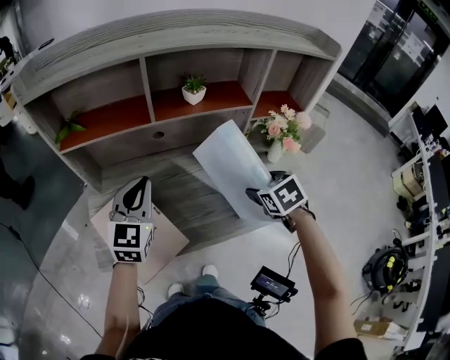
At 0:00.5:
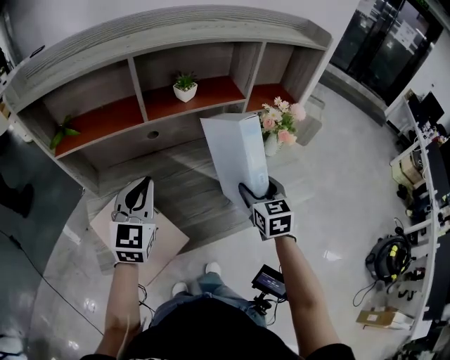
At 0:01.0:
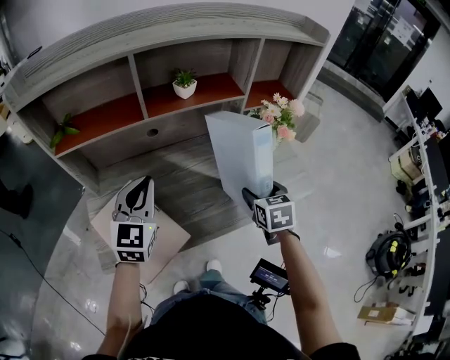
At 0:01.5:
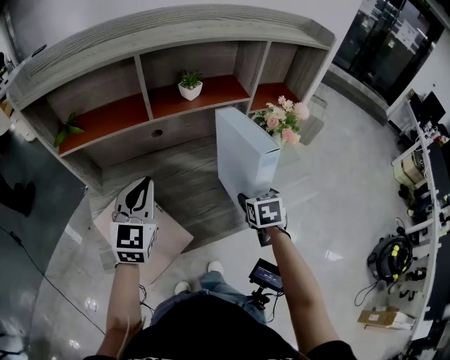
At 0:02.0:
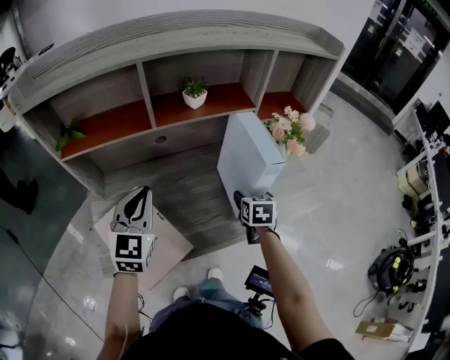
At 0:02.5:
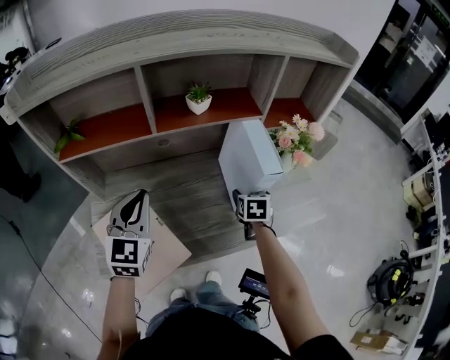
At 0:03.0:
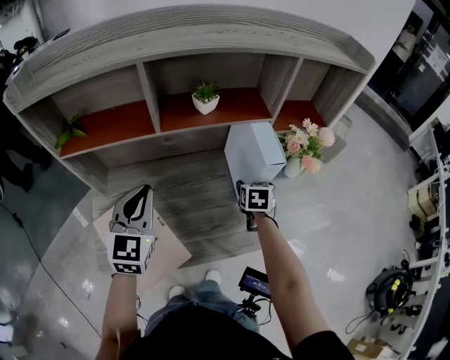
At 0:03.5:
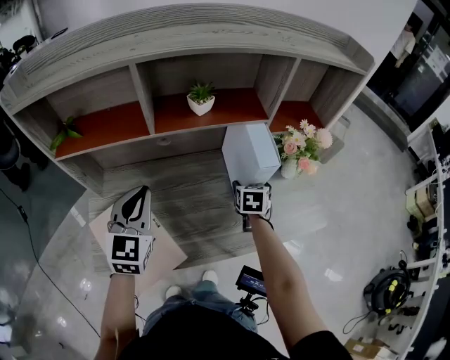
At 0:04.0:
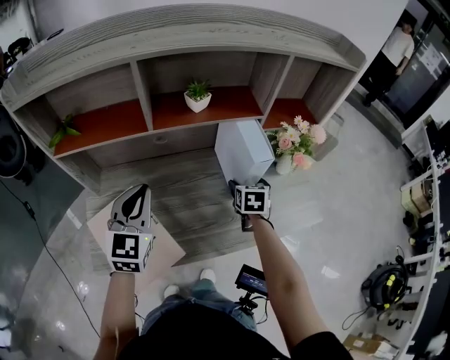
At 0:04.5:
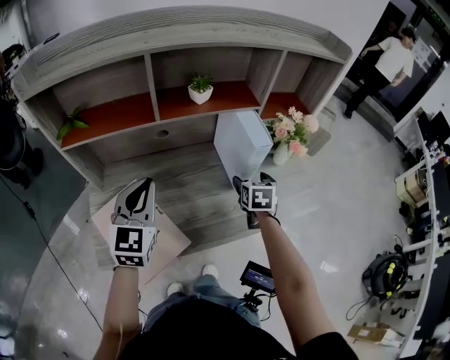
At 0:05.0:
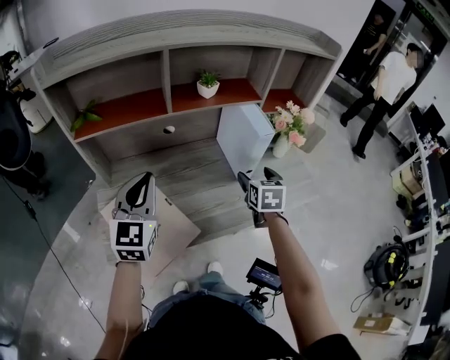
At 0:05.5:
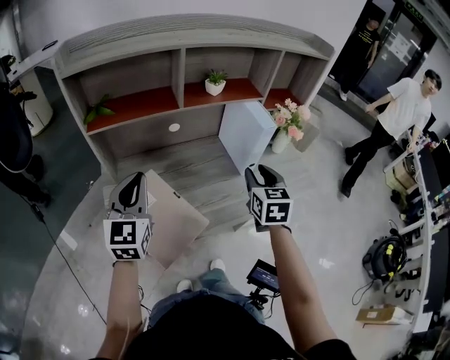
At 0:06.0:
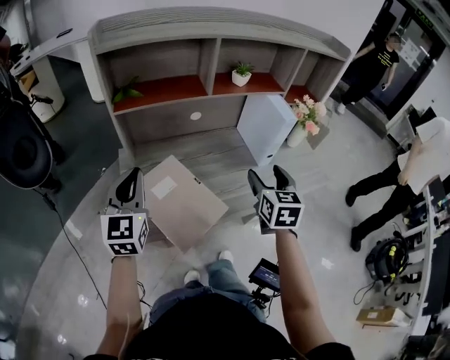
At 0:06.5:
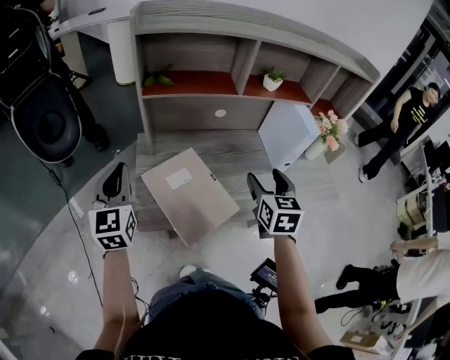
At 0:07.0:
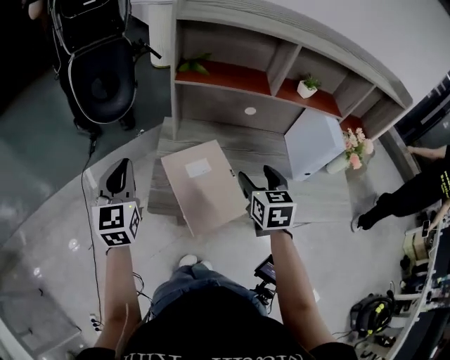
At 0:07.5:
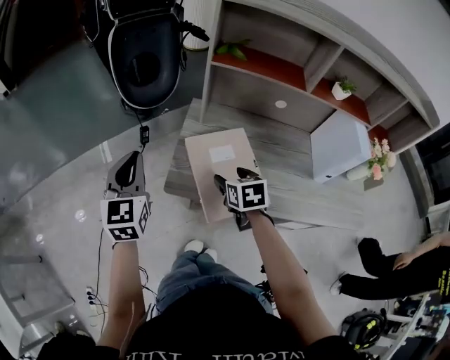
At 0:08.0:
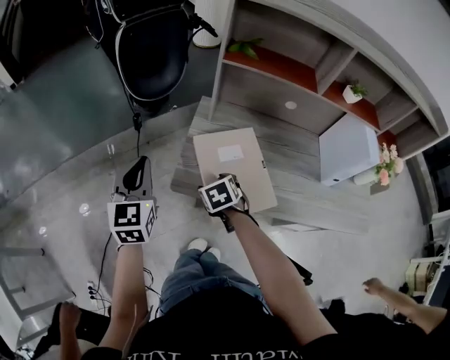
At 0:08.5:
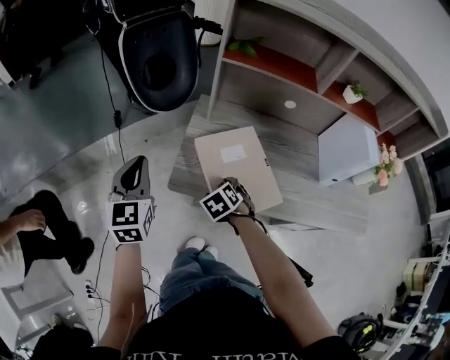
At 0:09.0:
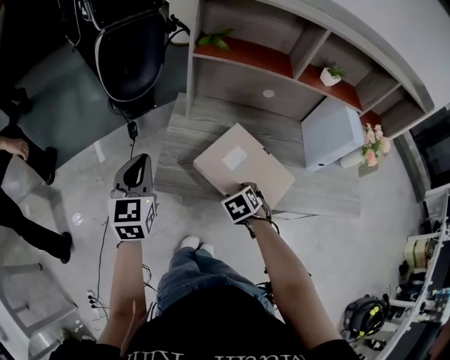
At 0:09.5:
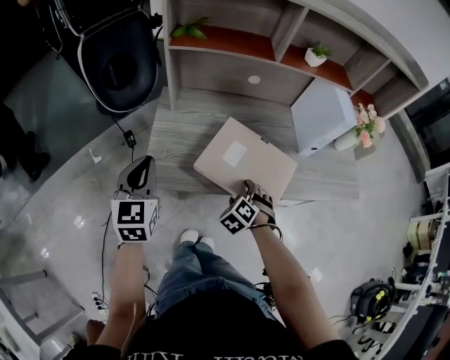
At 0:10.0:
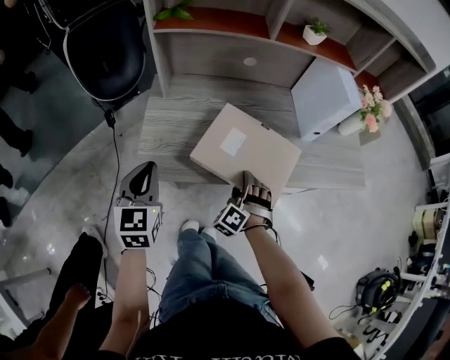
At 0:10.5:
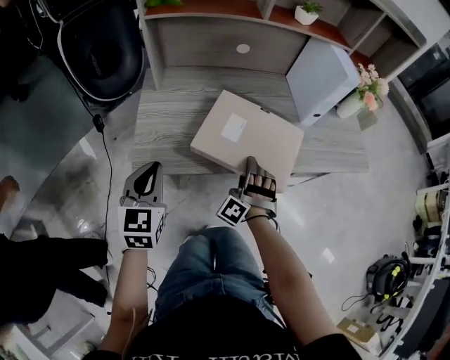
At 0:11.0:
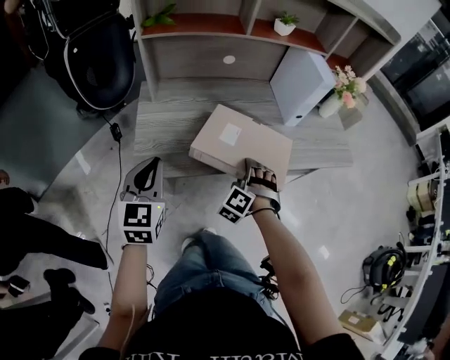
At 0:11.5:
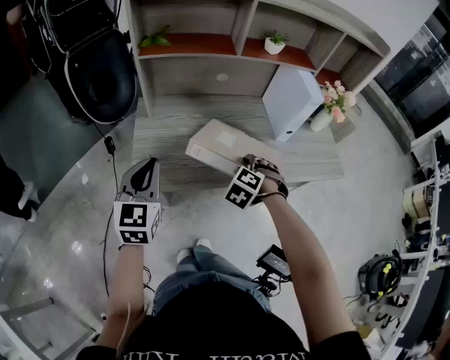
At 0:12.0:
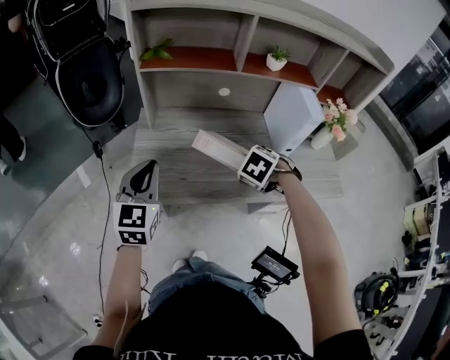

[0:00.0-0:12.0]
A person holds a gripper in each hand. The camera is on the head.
0:00.0 to 0:02.0: The right gripper goes approximately 10 cm downward, and swivels approximately 30 degrees.
0:02.0 to 0:04.0: The right gripper is displaced forward by roughly 10 cm.
0:04.0 to 0:06.0: The left gripper moves to the left and backward, roughly 25 cm. The right gripper moves backward, upward and to the left, some 30 cm, rotates approximately 20 degrees, and closes, then opens again.
0:06.0 to 0:08.0: The left gripper shifts by some 20 cm, and turns by some 30 degrees. Meanwhile the right gripper shifts by some 40 cm, and tips its fingers downward by approximately 40 degrees.
0:08.0 to 0:10.0: The left gripper shifts by roughly 15 cm. The right gripper moves about 25 cm, and changes its angle by roughly 60 degrees.
0:10.0 to 0:12.0: The left gripper heads upward, covering some 10 cm. The right gripper heads upward, covering approximately 15 cm, and tips its fingers downward by some 40 degrees.

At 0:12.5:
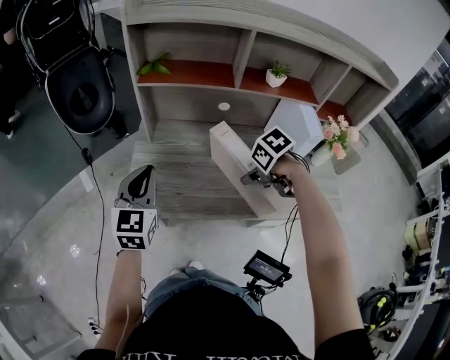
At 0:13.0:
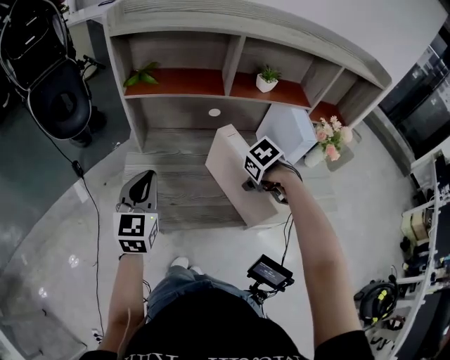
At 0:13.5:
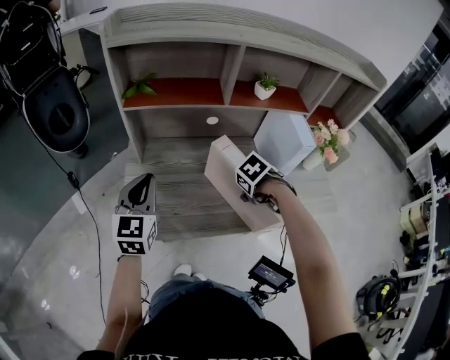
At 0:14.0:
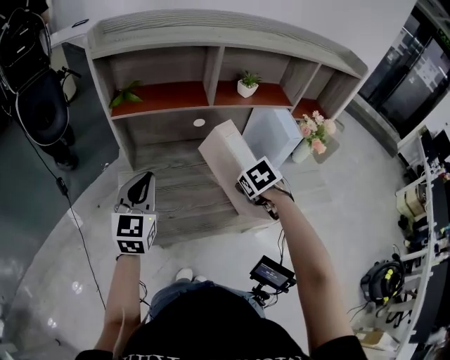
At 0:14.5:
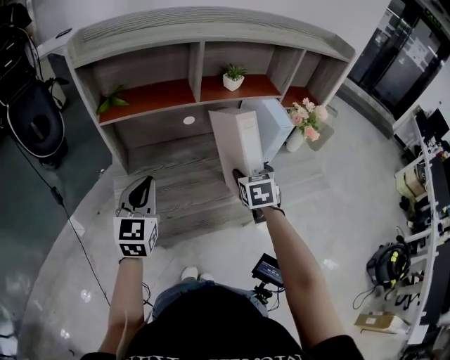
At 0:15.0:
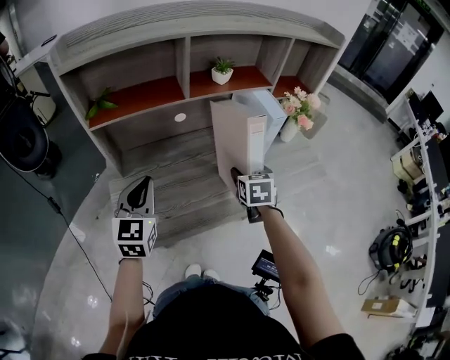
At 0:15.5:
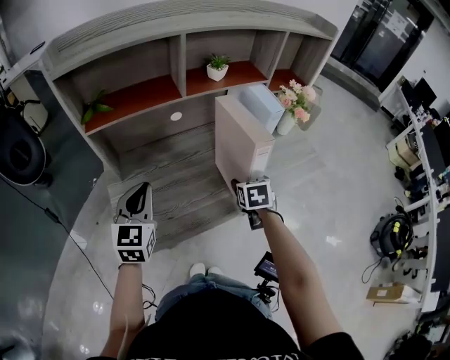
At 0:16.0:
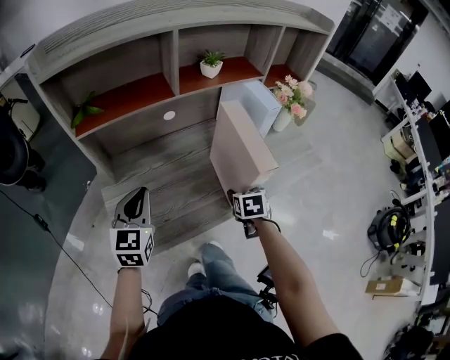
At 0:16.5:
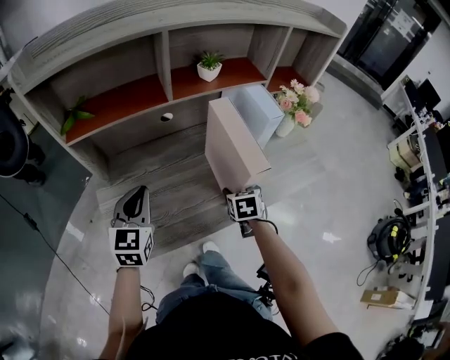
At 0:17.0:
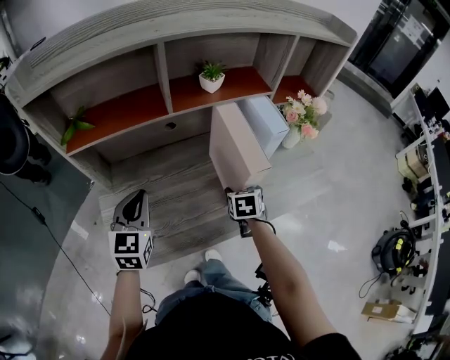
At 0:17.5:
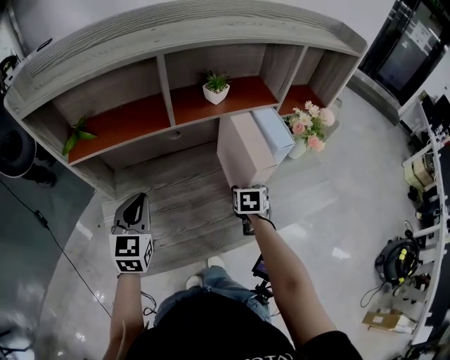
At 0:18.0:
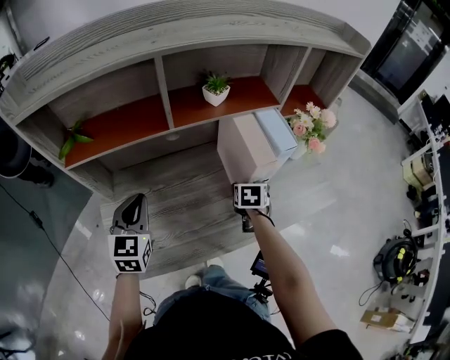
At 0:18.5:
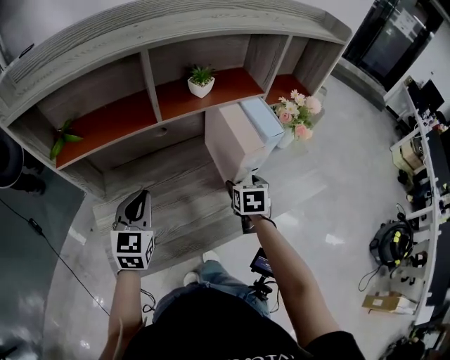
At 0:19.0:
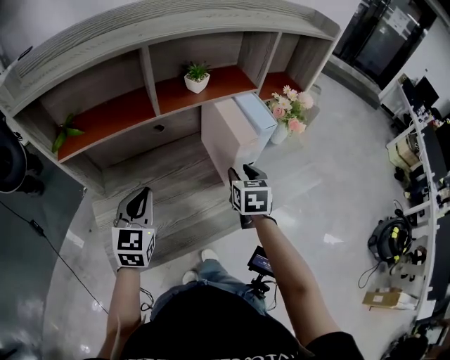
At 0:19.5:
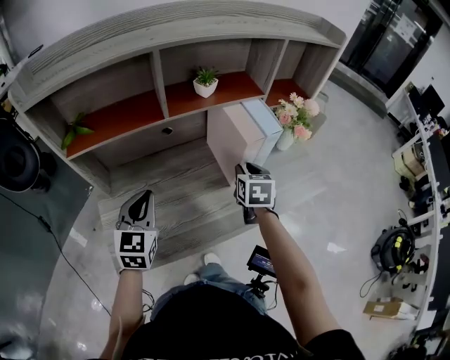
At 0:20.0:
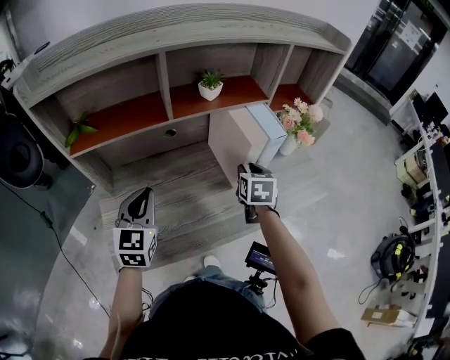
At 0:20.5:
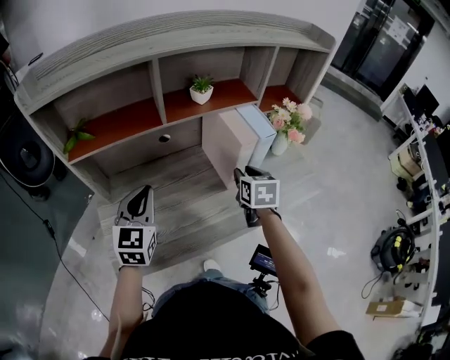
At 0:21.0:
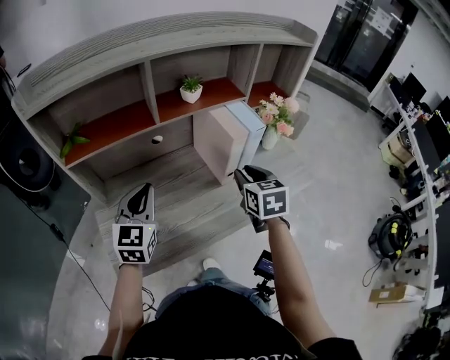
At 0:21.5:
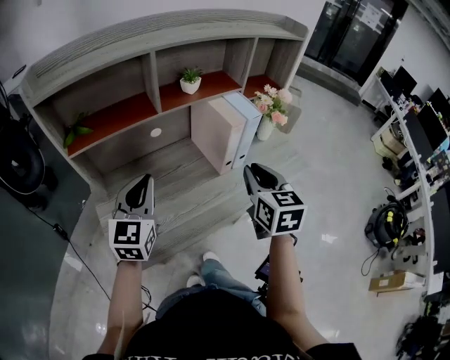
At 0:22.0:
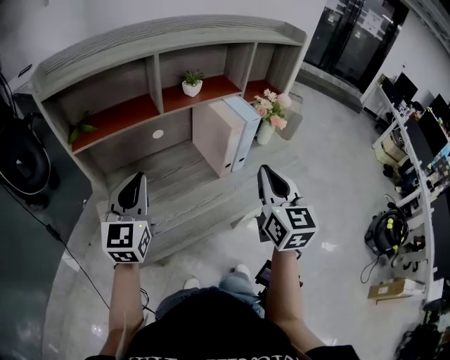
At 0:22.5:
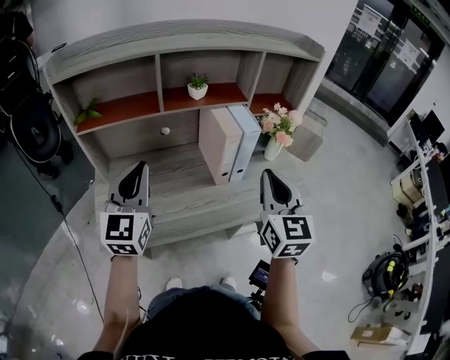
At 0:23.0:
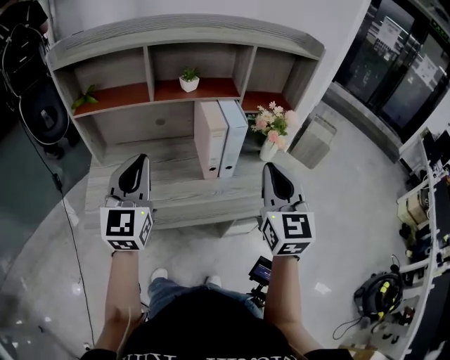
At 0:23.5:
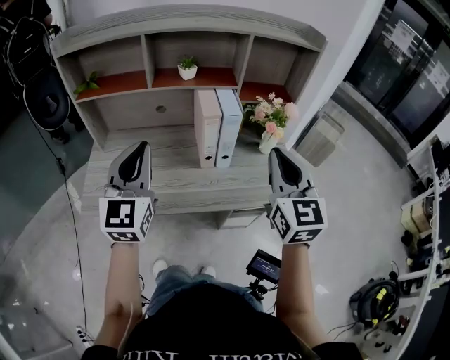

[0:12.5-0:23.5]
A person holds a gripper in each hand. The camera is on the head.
0:12.5 to 0:14.5: The right gripper moves about 5 cm, and angles its fingers upward, by approximately 40 degrees. The left gripper ends up about 10 cm from where it was.
0:14.5 to 0:16.0: The left gripper changes place by about 5 cm. Meanwhile the right gripper is displaced downward and backward by approximately 15 cm, and turns by approximately 20 degrees.
0:16.0 to 0:18.0: The right gripper moves forward, approximately 15 cm. The left gripper travels forward by some 10 cm.
0:18.0 to 0:20.0: The right gripper travels upward by about 10 cm, and closes up.
0:20.0 to 0:21.5: The right gripper shifts roughly 20 cm backward and upward. Meanwhile the left gripper travels upward by some 5 cm.
0:21.5 to 0:23.5: The right gripper moves to the right and upward, about 20 cm, and swivels about 30 degrees. The left gripper heads to the right, upward and backward, covering approximately 20 cm, and changes its angle by some 30 degrees.

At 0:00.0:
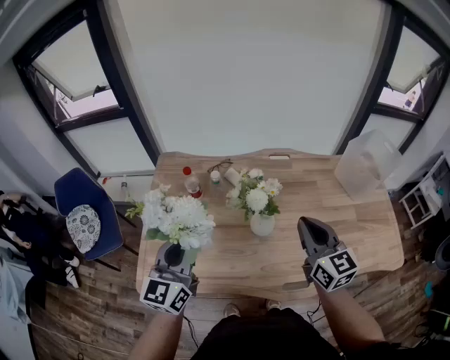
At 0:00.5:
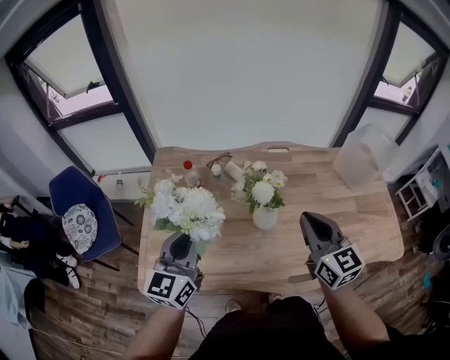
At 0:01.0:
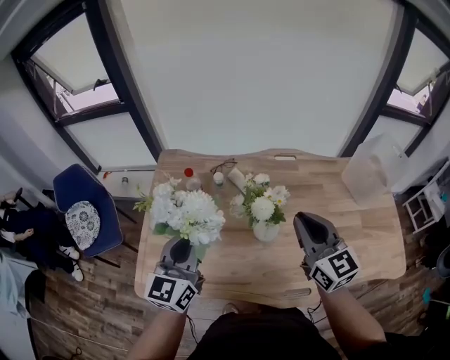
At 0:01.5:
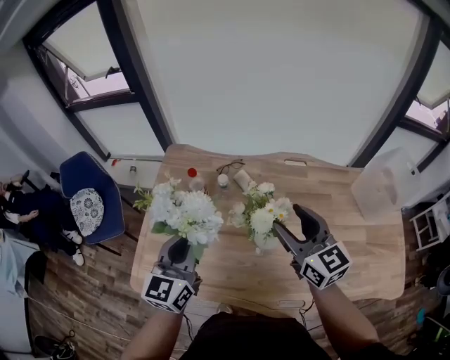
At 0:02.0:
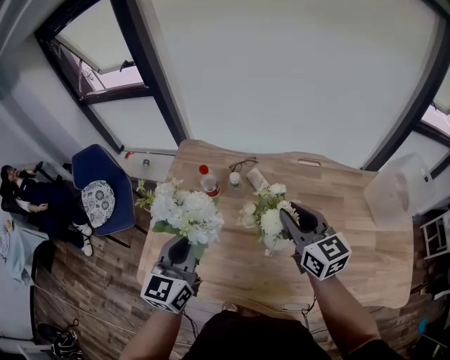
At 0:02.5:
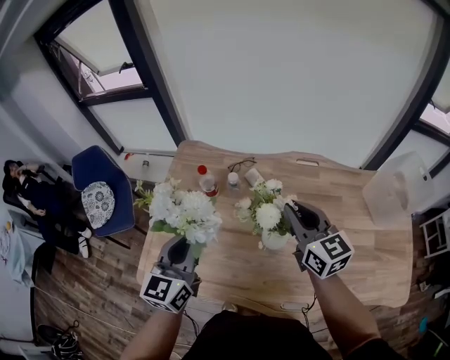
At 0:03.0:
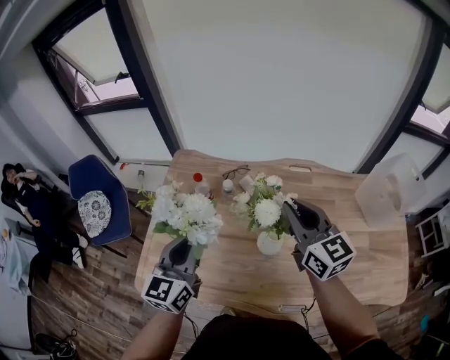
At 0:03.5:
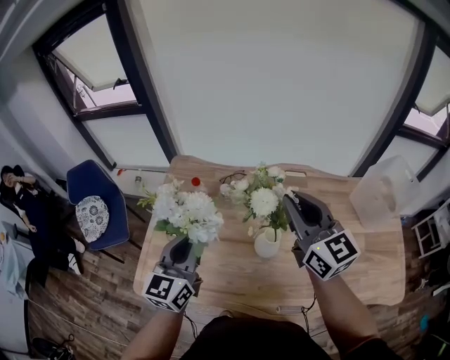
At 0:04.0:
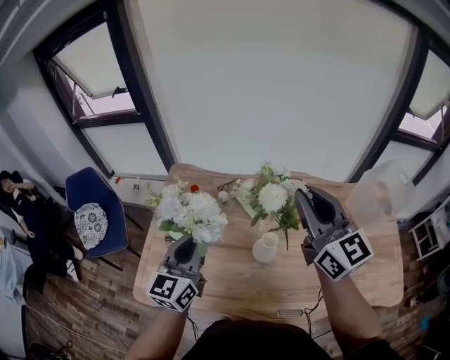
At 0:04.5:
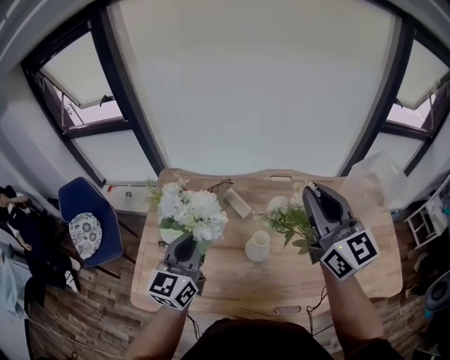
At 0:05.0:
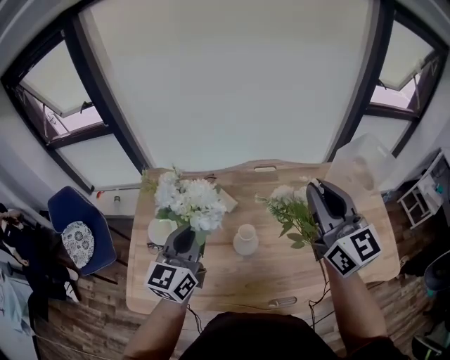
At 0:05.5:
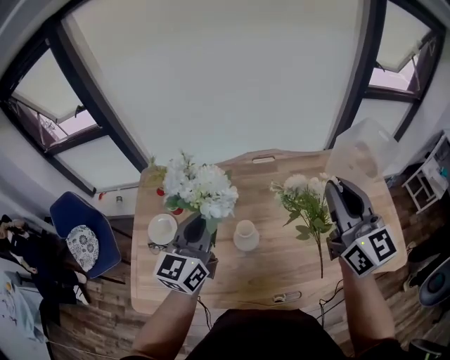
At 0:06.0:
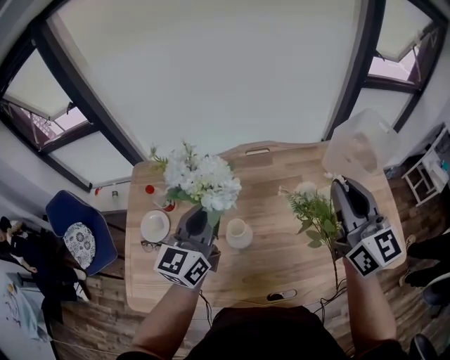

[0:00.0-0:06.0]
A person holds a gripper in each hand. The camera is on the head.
0:00.0 to 0:02.0: The left gripper shifts roughly 5 cm forward; the right gripper moves forward and to the left, about 15 cm, and opens.
0:02.0 to 0:04.0: The right gripper goes approximately 15 cm upward, and rotates roughly 20 degrees.
0:04.0 to 0:06.0: The right gripper goes some 20 cm to the right. Meanwhile the left gripper moves to the right and forward, some 20 cm.
